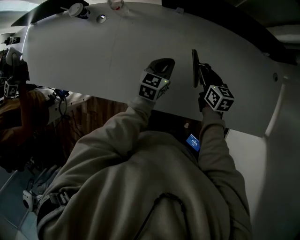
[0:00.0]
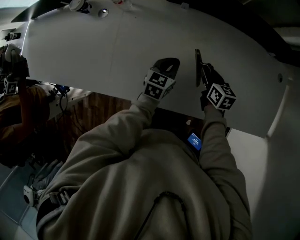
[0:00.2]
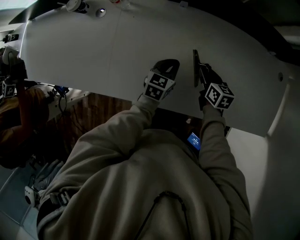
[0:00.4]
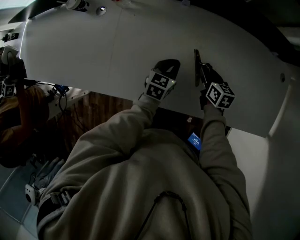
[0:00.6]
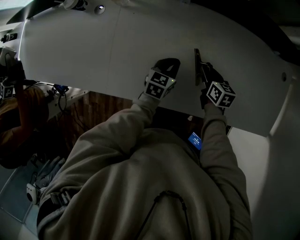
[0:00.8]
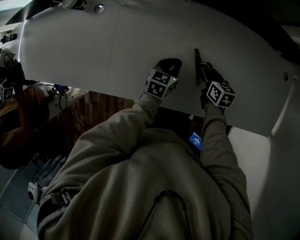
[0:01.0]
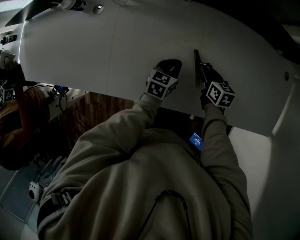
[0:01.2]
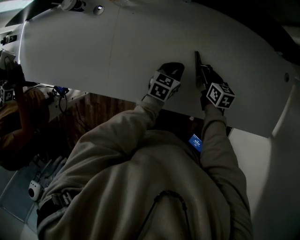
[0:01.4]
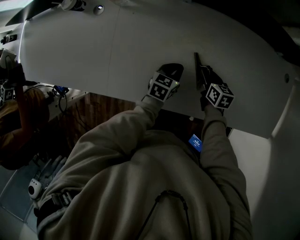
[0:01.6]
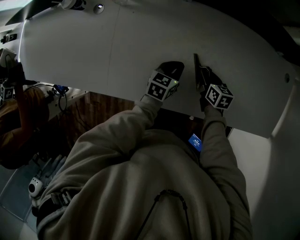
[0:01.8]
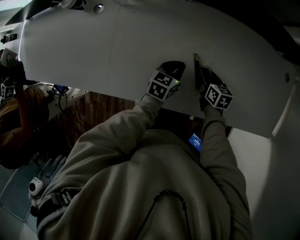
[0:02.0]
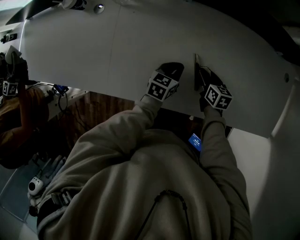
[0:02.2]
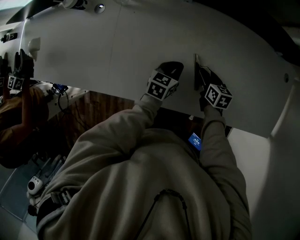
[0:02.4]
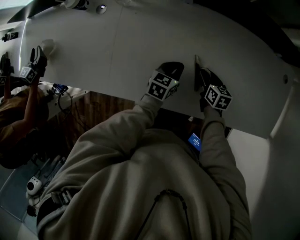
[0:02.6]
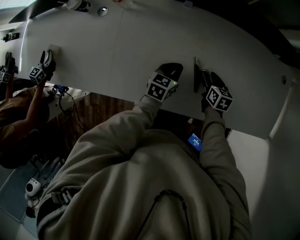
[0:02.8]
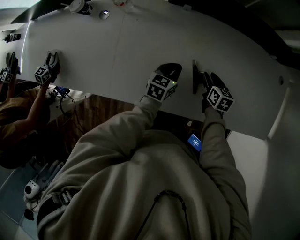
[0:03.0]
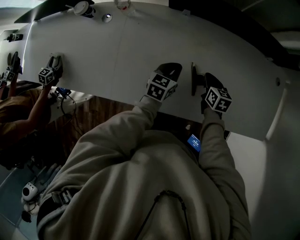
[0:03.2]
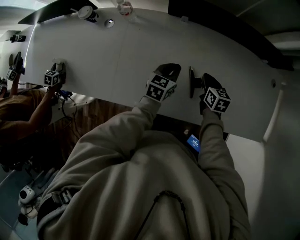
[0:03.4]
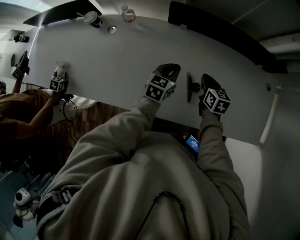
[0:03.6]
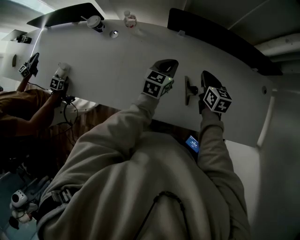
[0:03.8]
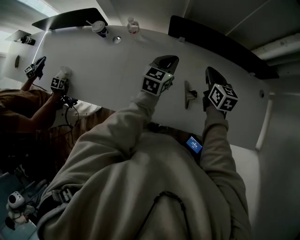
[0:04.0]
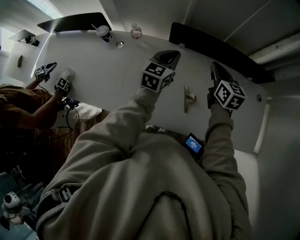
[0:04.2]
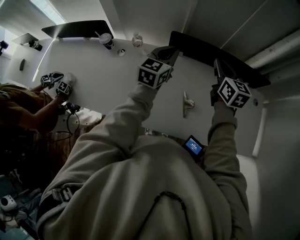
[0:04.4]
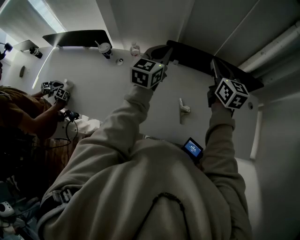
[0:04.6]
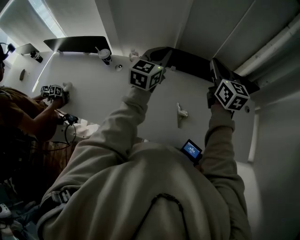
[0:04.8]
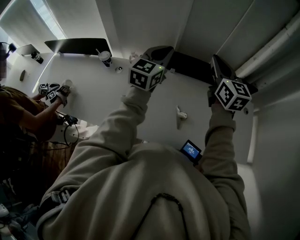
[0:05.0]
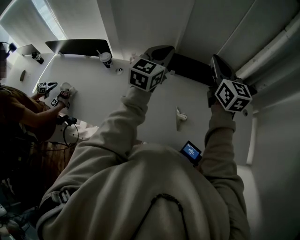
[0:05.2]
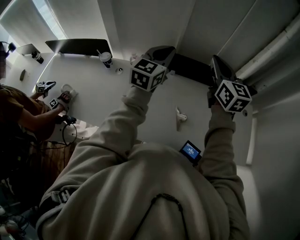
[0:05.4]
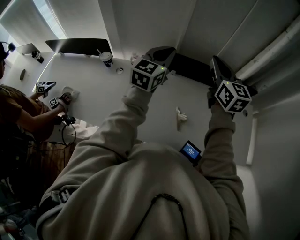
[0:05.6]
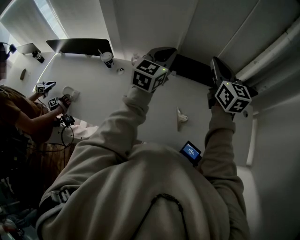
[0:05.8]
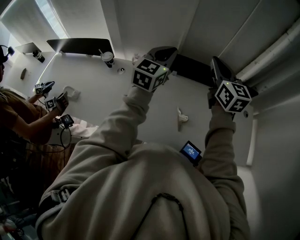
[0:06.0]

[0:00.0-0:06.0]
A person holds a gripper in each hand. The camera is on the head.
0:00.0 to 0:01.6: The two grippers go approximately 10 cm downward.
0:01.6 to 0:03.0: The left gripper changes place by roughly 5 cm.
0:03.0 to 0:04.4: Both grippers travel together upward, about 35 cm. The left gripper swivels approximately 30 degrees. The right gripper tips its fingers upward by approximately 30 degrees, and closes its fingers.
0:04.4 to 0:06.0: Both grippers travel together upward, some 15 cm.

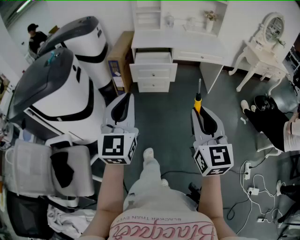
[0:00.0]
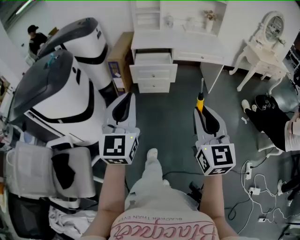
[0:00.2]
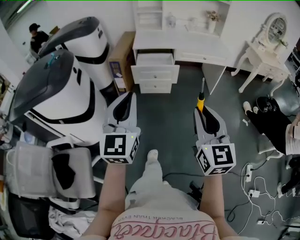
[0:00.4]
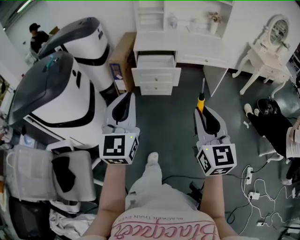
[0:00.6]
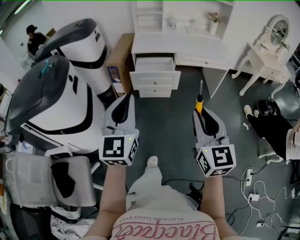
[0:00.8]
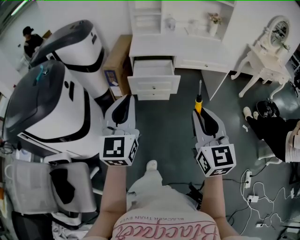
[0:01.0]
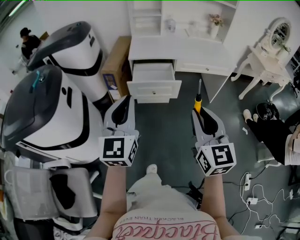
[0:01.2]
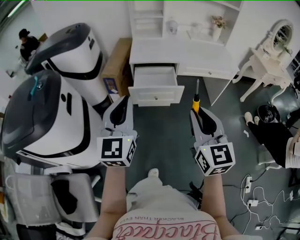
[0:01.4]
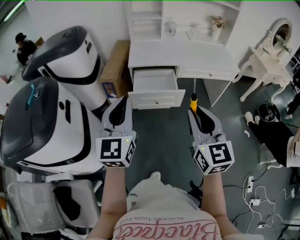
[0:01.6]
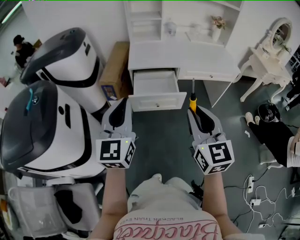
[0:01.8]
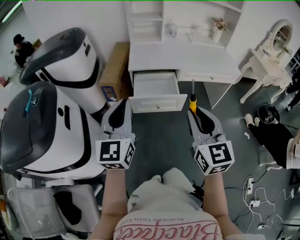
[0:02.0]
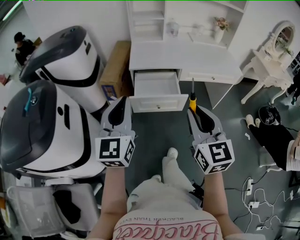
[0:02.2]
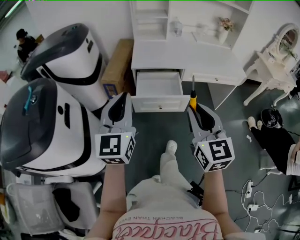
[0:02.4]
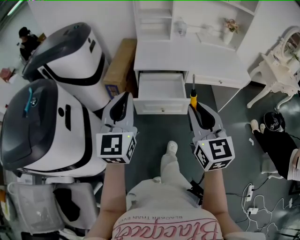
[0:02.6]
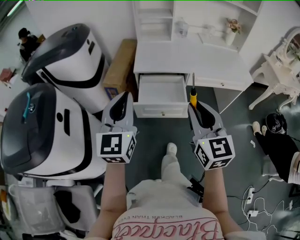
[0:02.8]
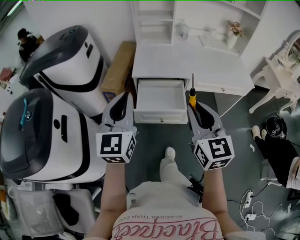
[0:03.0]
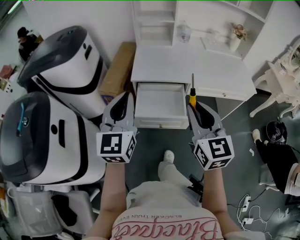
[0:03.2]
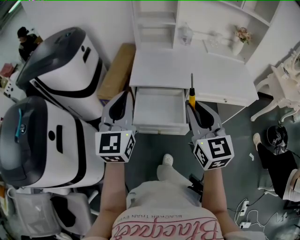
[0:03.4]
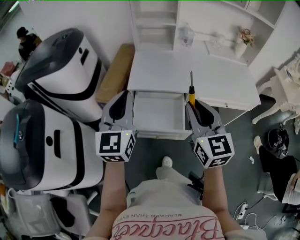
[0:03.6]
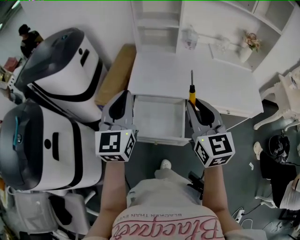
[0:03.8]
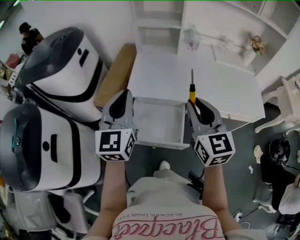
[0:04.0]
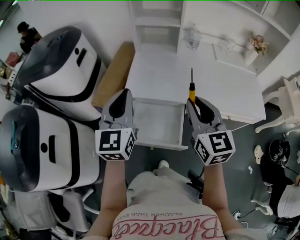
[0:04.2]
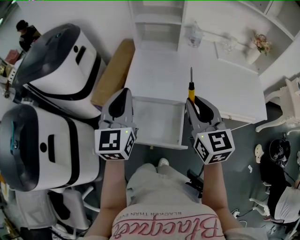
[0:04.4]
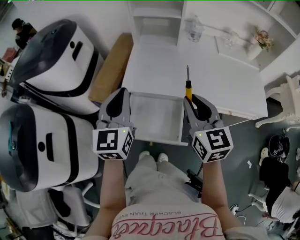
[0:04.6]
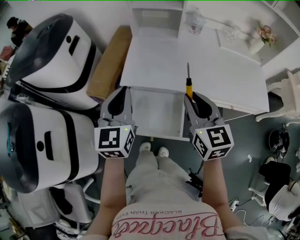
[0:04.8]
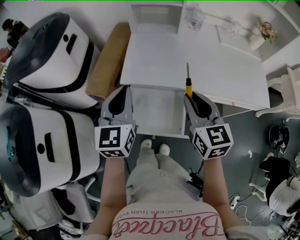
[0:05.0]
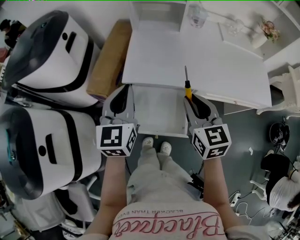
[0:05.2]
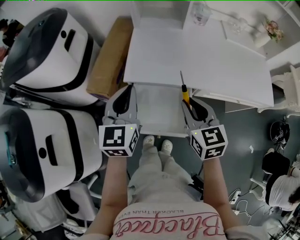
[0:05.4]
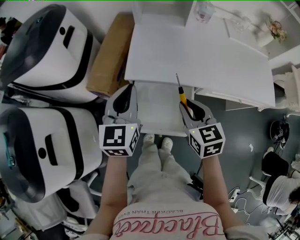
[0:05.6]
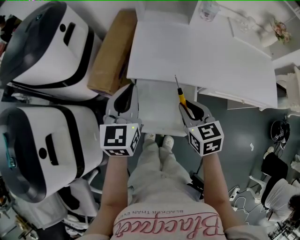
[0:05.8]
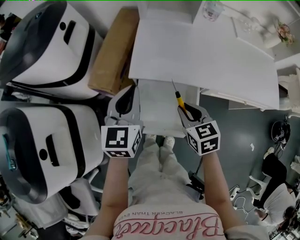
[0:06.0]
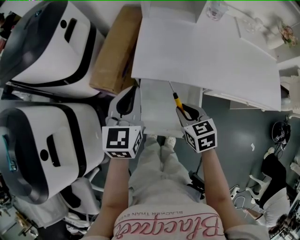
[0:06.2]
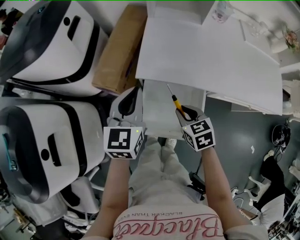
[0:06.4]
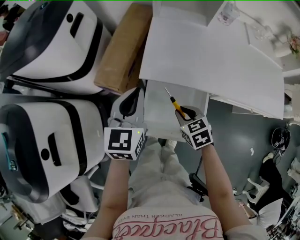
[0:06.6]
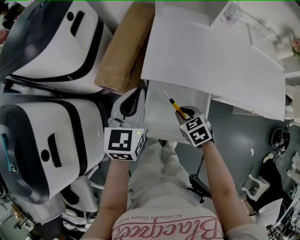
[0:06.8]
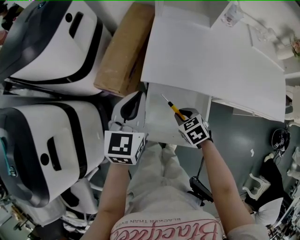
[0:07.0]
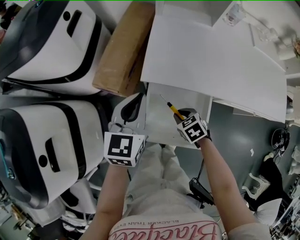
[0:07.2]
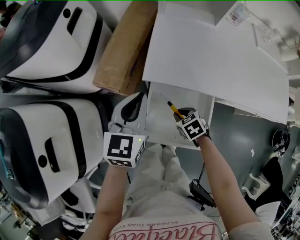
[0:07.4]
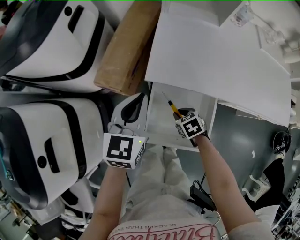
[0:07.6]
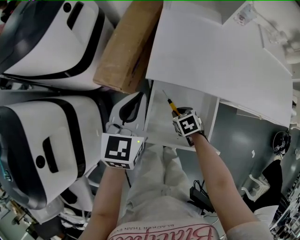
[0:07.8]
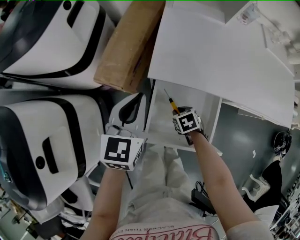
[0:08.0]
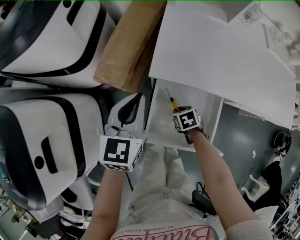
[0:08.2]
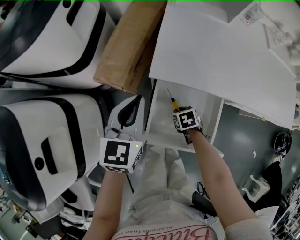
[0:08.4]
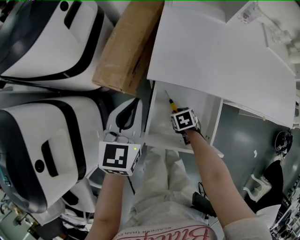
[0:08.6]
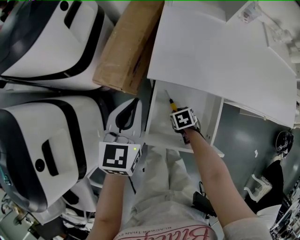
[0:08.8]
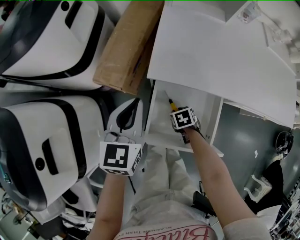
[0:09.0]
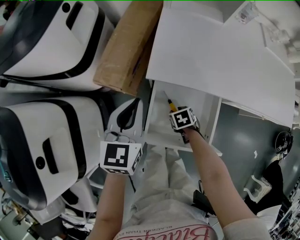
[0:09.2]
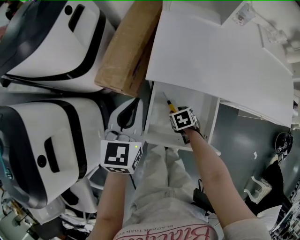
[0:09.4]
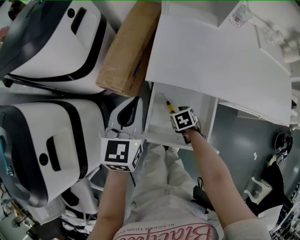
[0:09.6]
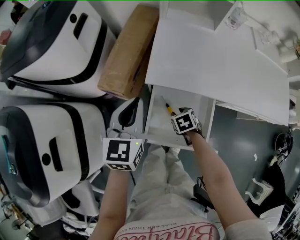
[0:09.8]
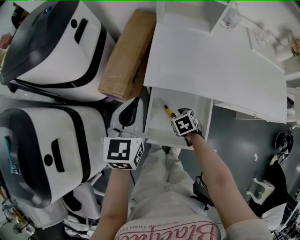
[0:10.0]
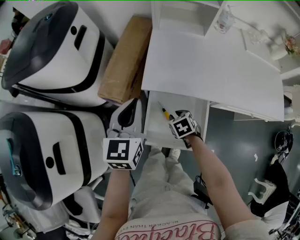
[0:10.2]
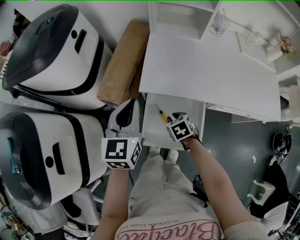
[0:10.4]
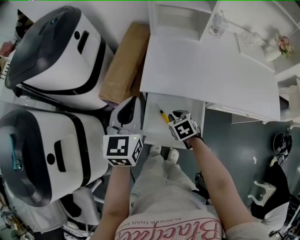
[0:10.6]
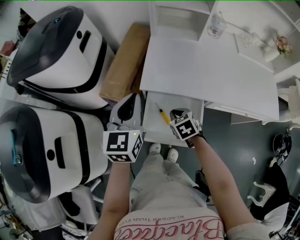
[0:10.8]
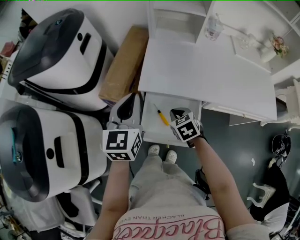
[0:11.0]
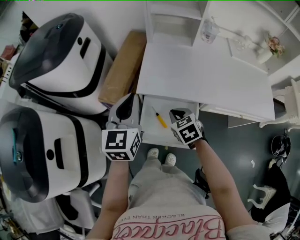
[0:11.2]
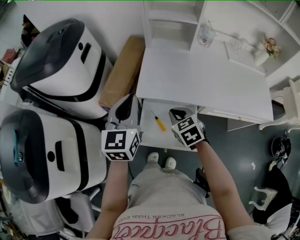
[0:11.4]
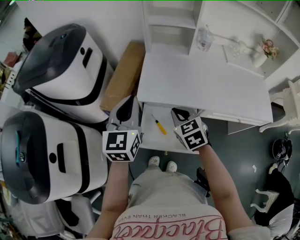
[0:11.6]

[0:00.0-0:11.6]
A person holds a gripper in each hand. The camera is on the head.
0:00.0 to 0:01.4: The two grippers go roughly 25 cm forward.
0:01.4 to 0:02.8: The two grippers go about 15 cm forward.
0:02.8 to 0:04.4: The grippers both shift forward by approximately 25 cm.
0:04.4 to 0:05.8: The left gripper goes about 10 cm downward. Meanwhile the right gripper shifts approximately 20 cm downward and to the left, and rotates about 30 degrees.
0:05.8 to 0:07.2: The left gripper travels downward by some 5 cm. Meanwhile the right gripper goes approximately 20 cm downward, and rotates some 30 degrees.
0:07.2 to 0:08.8: The right gripper heads downward, covering roughly 10 cm, and swivels some 20 degrees; the left gripper shifts by roughly 5 cm.
0:08.8 to 0:10.2: The right gripper goes some 10 cm upward, while the left gripper shifts about 5 cm upward.
0:10.2 to 0:11.6: The right gripper moves upward, some 20 cm, swivels approximately 30 degrees, and closes up. The left gripper heads upward, covering about 10 cm.

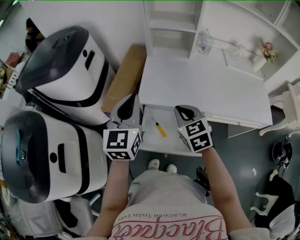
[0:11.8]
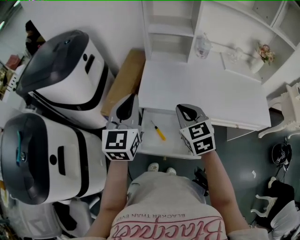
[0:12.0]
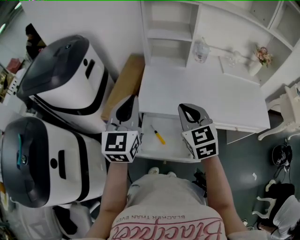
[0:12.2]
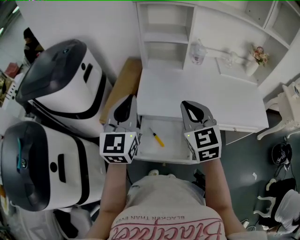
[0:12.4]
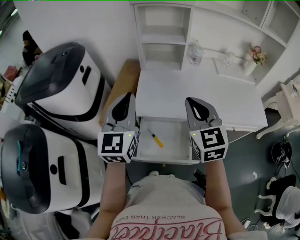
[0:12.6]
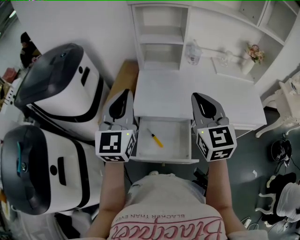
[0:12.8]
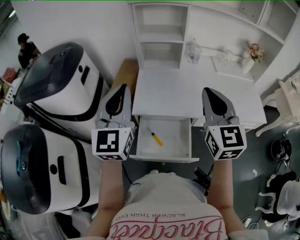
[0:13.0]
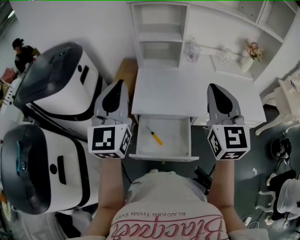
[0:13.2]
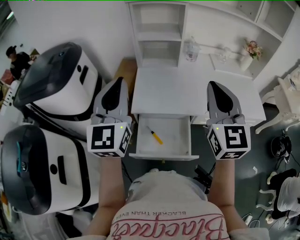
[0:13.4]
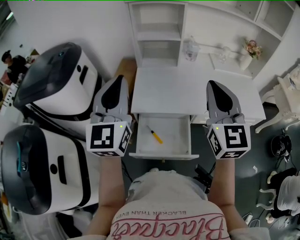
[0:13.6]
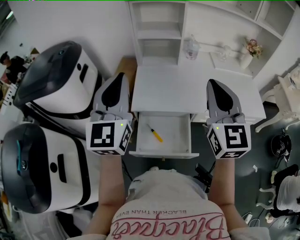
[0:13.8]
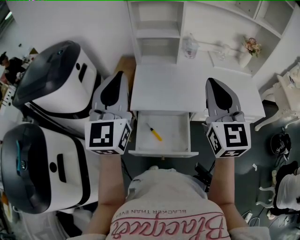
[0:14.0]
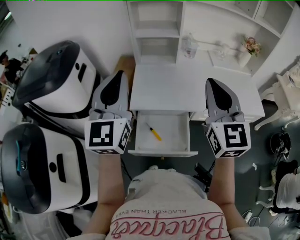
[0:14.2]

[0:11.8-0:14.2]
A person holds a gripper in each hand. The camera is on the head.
0:11.8 to 0:13.0: The left gripper travels upward by some 10 cm; the right gripper travels upward and to the right by about 20 cm, and angles its fingers upward, by approximately 30 degrees.
0:13.0 to 0:14.2: The grippers stay close to where they were, moving slightly.

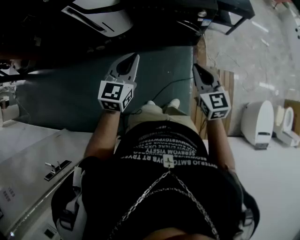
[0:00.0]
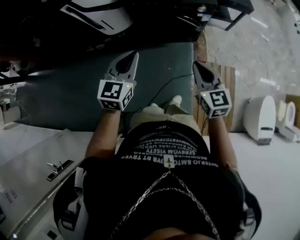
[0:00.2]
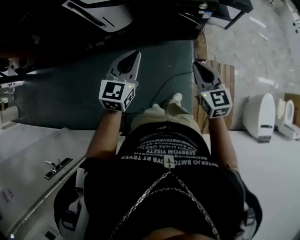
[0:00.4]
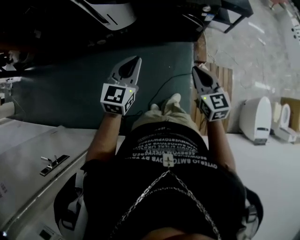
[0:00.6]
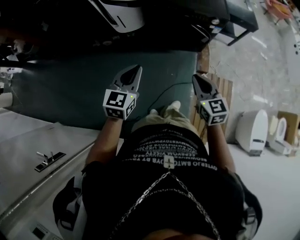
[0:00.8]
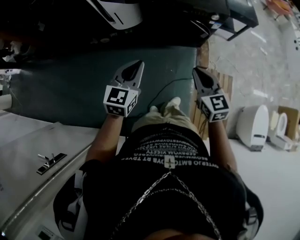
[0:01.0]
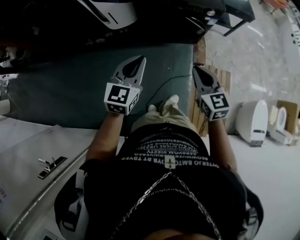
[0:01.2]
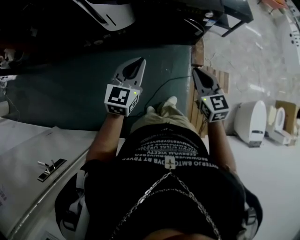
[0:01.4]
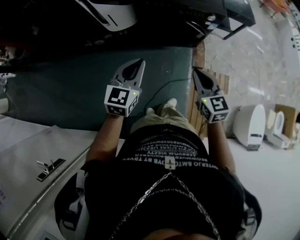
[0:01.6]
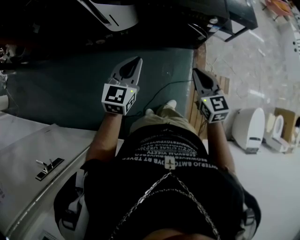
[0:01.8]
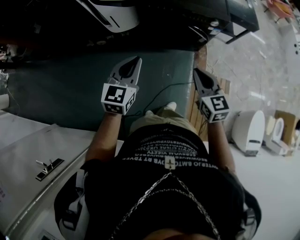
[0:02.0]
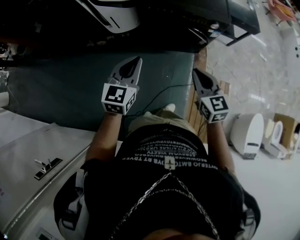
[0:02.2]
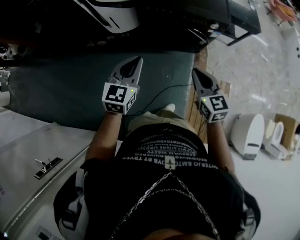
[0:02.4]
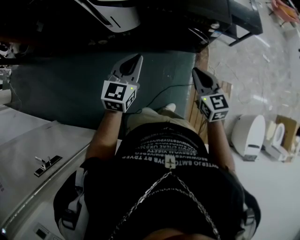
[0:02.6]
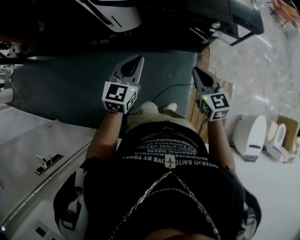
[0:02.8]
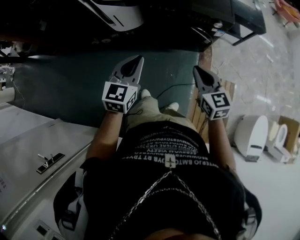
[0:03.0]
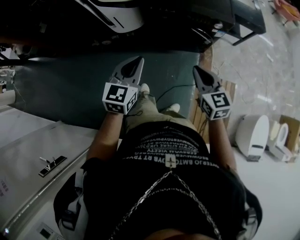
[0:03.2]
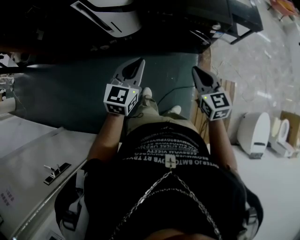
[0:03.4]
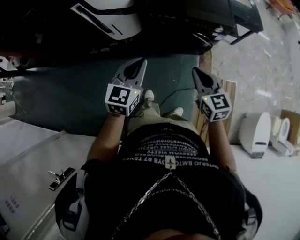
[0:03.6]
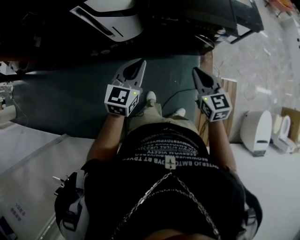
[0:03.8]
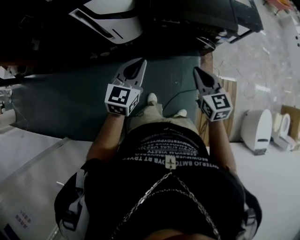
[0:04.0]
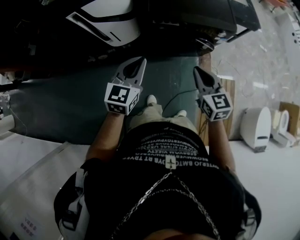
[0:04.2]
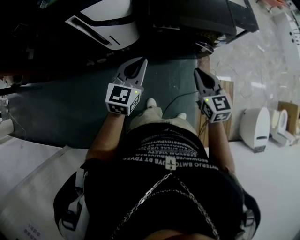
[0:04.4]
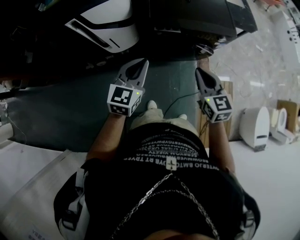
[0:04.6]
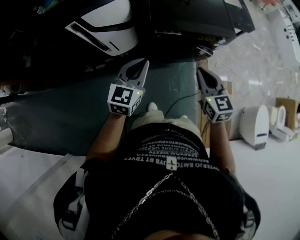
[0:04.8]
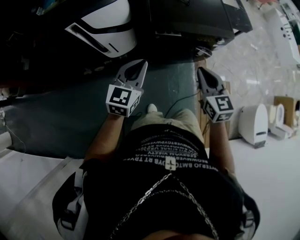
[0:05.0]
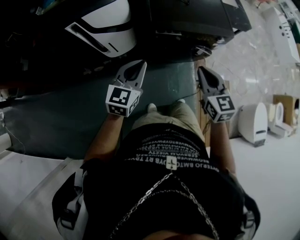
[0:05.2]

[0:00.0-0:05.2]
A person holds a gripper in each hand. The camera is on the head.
0:00.0 to 0:01.8: The grippers both shift to the left by roughly 10 cm. The left gripper goes backward and returns, approximately 10 cm each way.
0:01.8 to 0:03.4: The two grippers go approximately 10 cm forward.
0:03.4 to 0:05.2: Both grippers travel together to the left and forward, roughly 20 cm.
